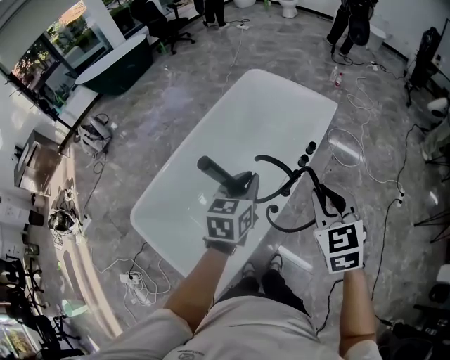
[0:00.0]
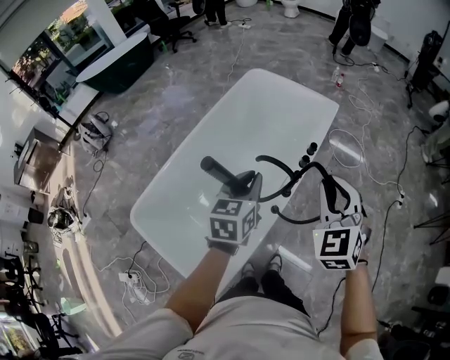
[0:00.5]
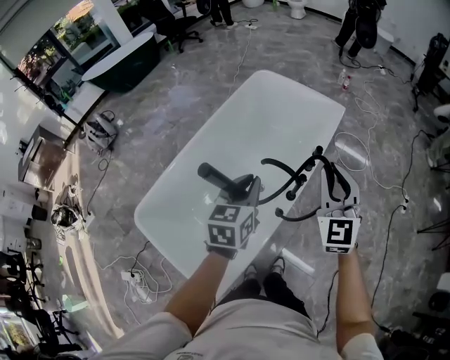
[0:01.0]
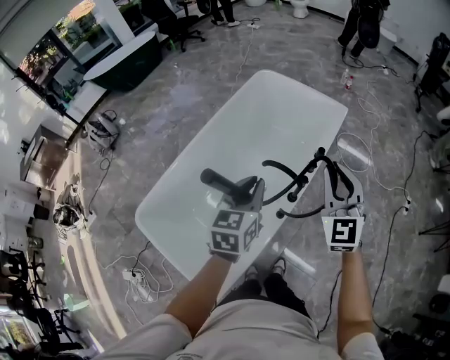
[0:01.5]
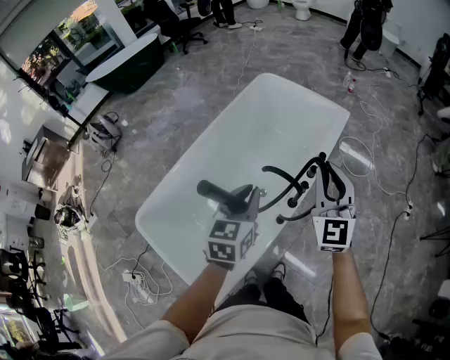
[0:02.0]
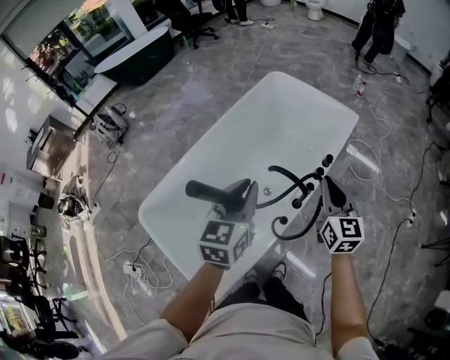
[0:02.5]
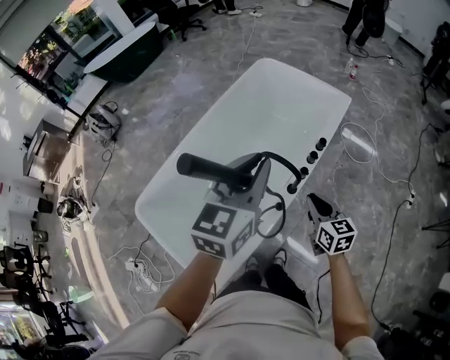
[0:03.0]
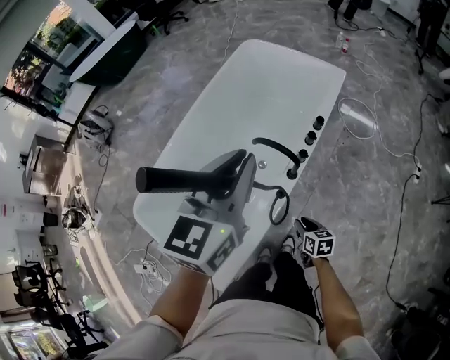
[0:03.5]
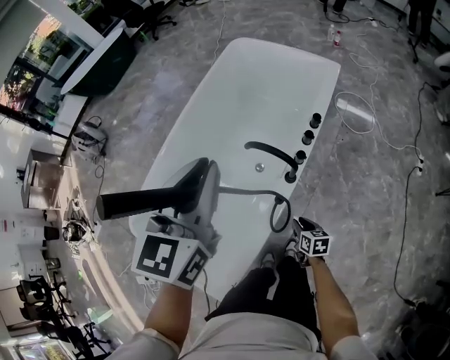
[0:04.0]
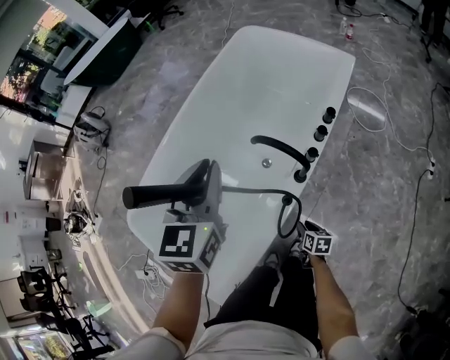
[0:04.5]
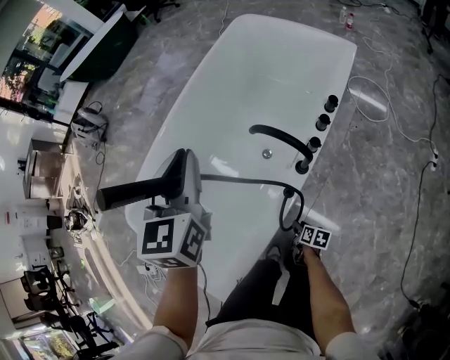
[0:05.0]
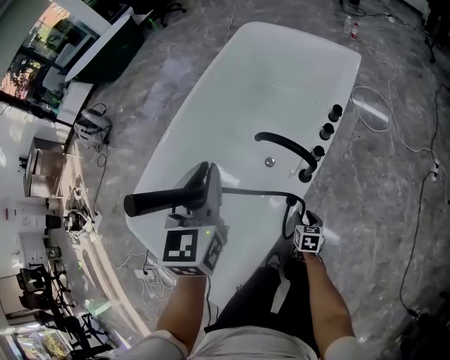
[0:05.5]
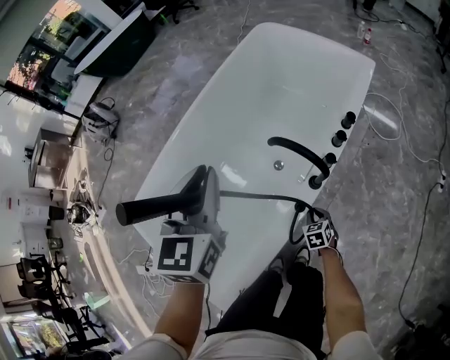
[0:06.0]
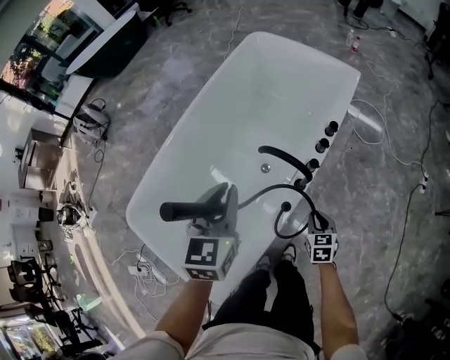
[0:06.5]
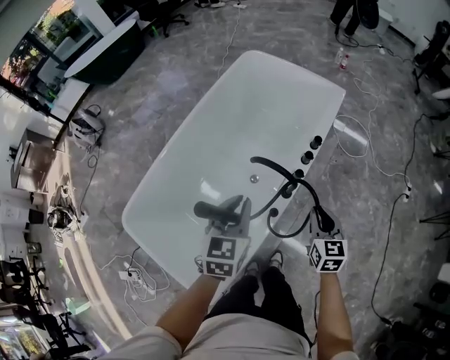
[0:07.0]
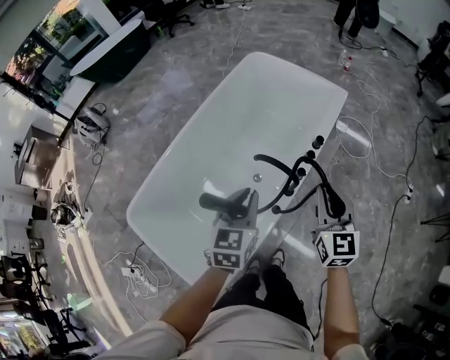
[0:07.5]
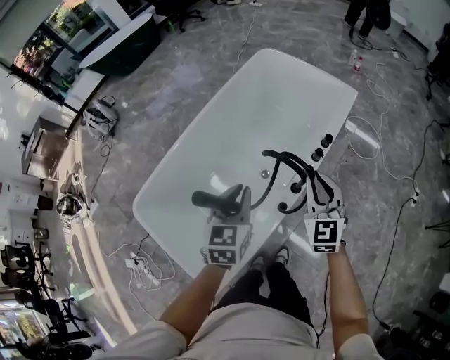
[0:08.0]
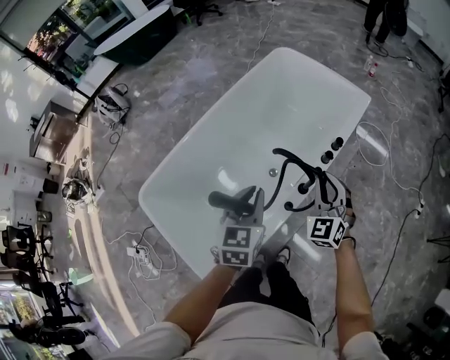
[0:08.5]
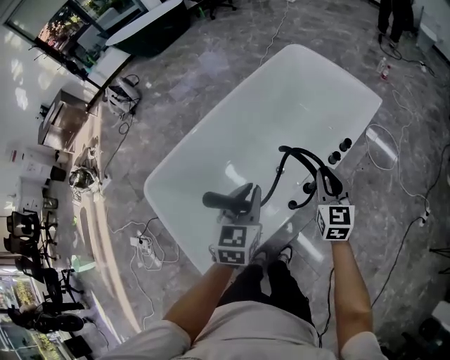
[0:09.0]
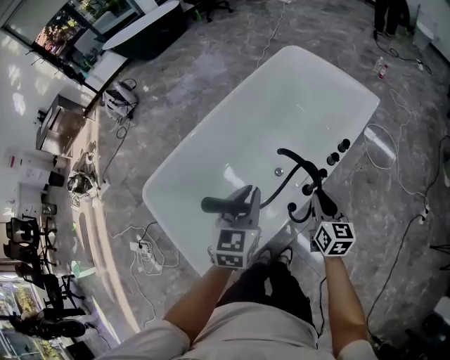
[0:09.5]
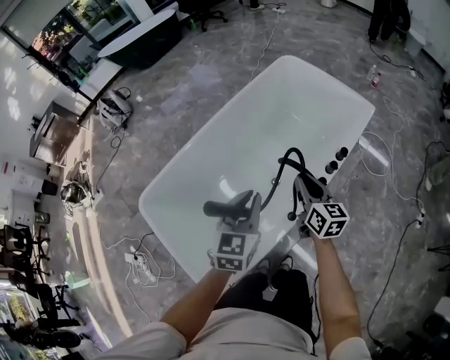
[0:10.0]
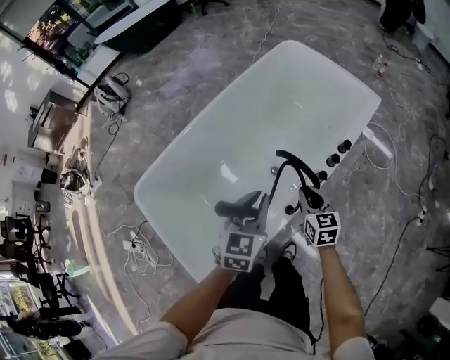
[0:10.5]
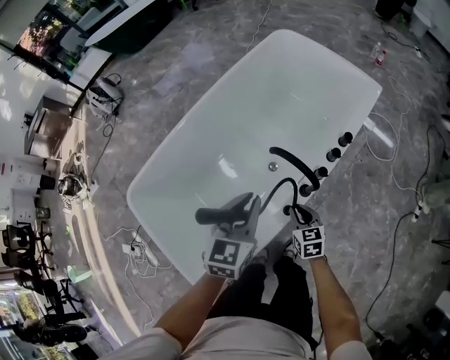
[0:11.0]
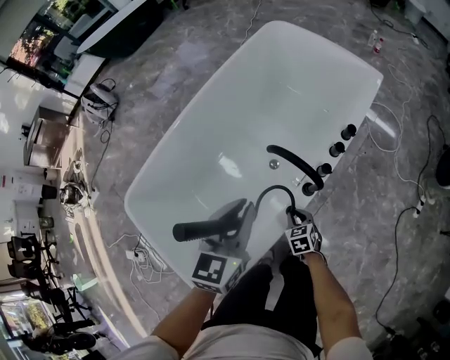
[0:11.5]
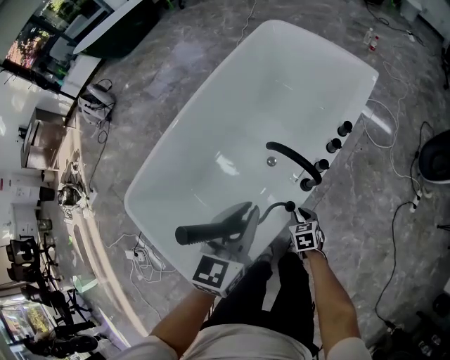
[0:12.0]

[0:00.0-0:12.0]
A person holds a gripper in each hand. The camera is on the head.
0.0 to 2.0 s: The right gripper is displaced forward by some 10 cm, and points its fingers roughly 30 degrees further upward.
2.0 to 4.0 s: The right gripper moves downward, some 50 cm, and tilts its fingers about 50 degrees downward; the left gripper heads upward, covering approximately 5 cm.
4.0 to 6.0 s: The left gripper goes approximately 15 cm downward and to the left, while the right gripper heads downward and forward, covering roughly 15 cm, and changes its angle by some 40 degrees.
6.0 to 8.0 s: The right gripper goes some 50 cm upward, and points its fingers roughly 40 degrees further upward; the left gripper travels to the right by about 5 cm.
8.0 to 10.0 s: The right gripper is displaced downward and to the left by about 10 cm, and swivels roughly 40 degrees.
10.0 to 12.0 s: The left gripper moves about 5 cm, while the right gripper moves downward, about 30 cm, and angles its fingers downward, by approximately 40 degrees.

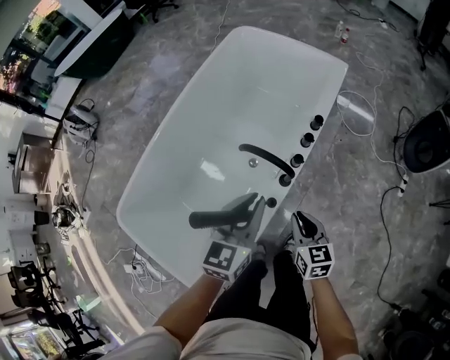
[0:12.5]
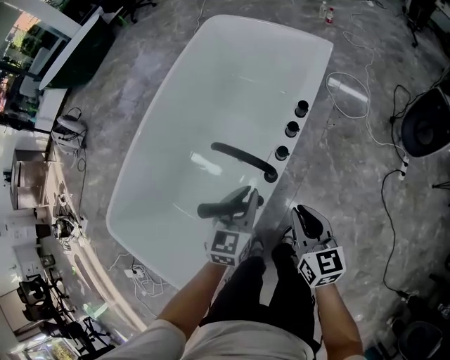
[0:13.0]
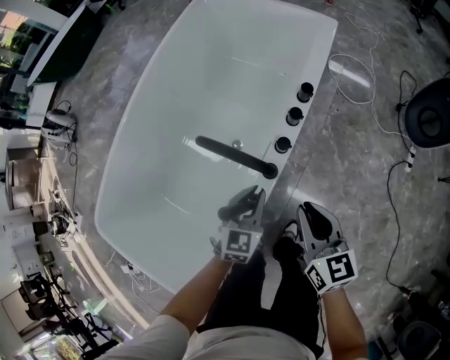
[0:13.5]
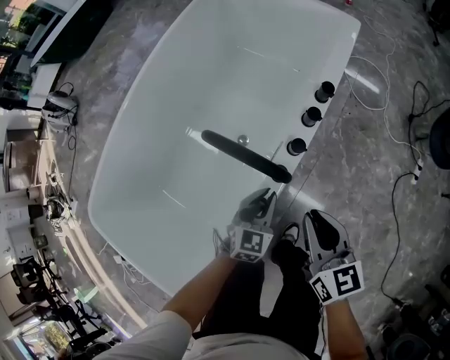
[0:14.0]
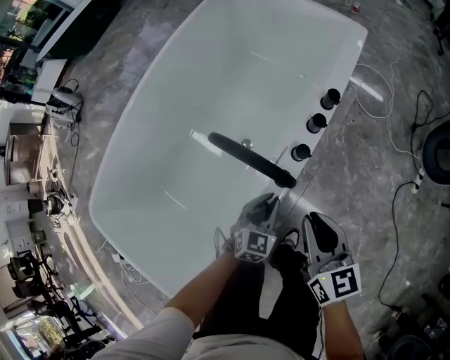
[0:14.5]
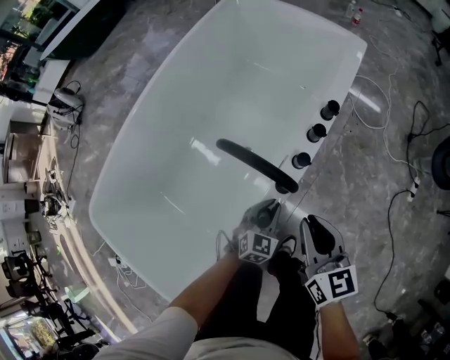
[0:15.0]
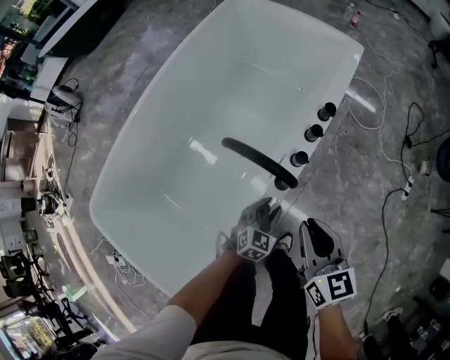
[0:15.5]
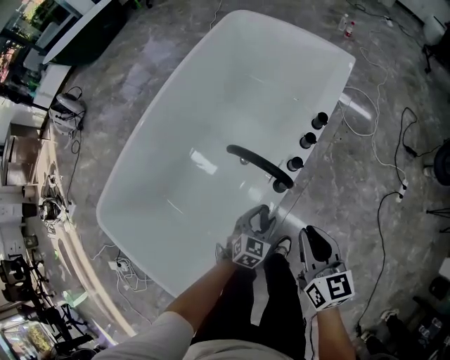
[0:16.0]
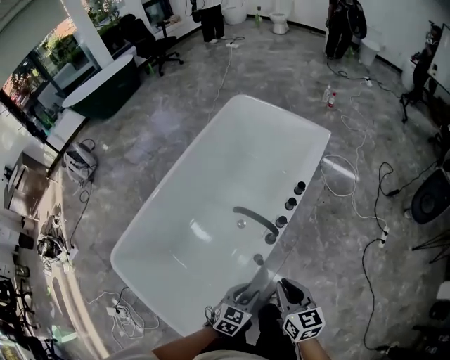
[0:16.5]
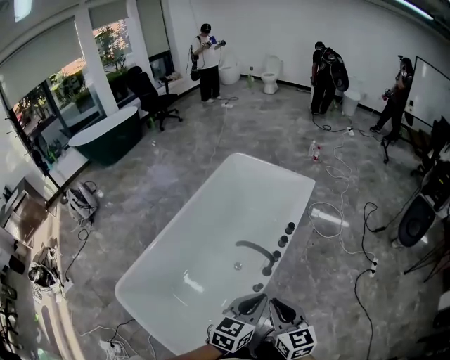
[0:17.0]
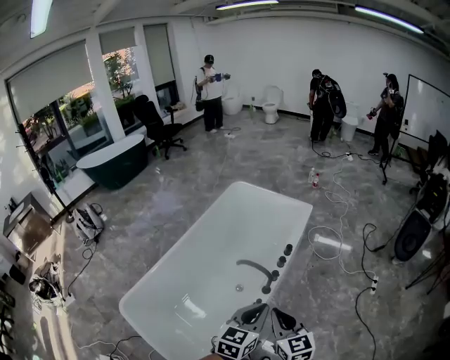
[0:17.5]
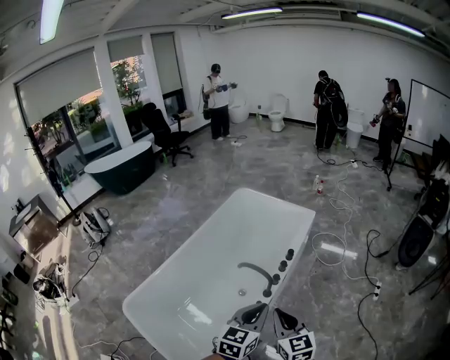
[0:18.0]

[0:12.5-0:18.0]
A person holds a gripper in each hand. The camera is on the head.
12.5 to 14.5 s: The left gripper heads downward, covering roughly 35 cm, and changes its angle by approximately 20 degrees. Meanwhile the right gripper moves forward, some 5 cm.
14.5 to 16.0 s: The left gripper changes place by some 5 cm, and opens, while the right gripper moves upward, about 5 cm.
16.0 to 18.0 s: The left gripper goes some 40 cm upward, rotates roughly 30 degrees, and closes up. The right gripper goes approximately 25 cm upward and backward, and rotates about 20 degrees.

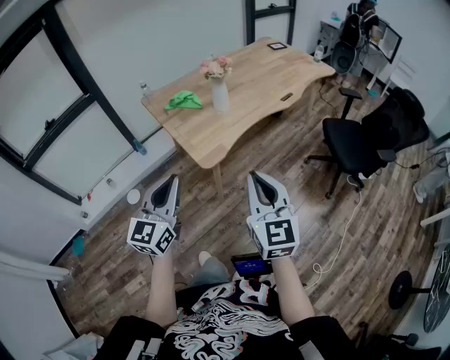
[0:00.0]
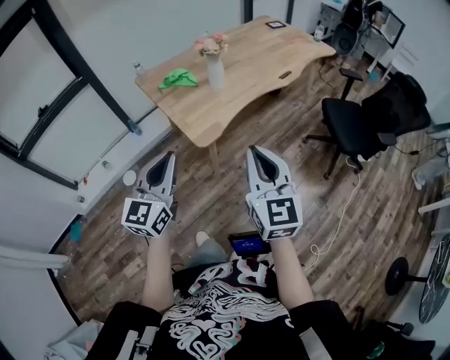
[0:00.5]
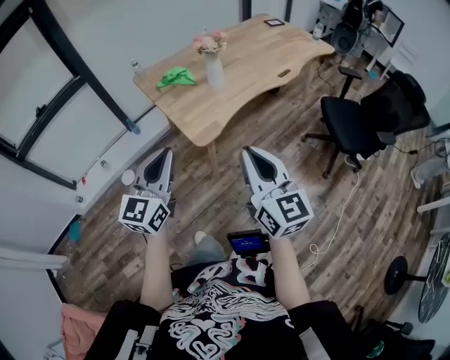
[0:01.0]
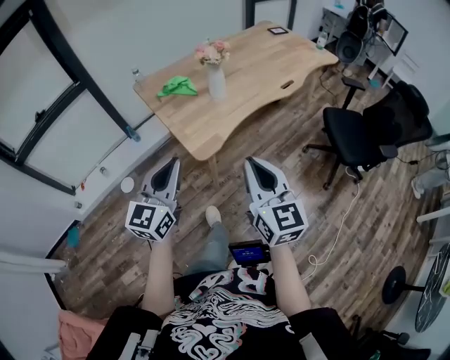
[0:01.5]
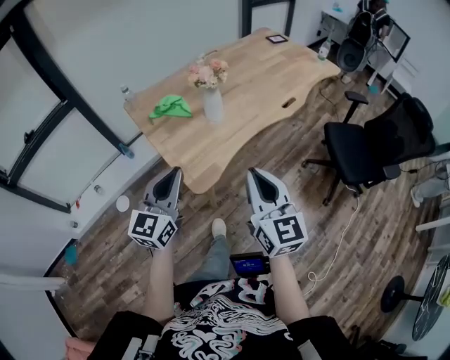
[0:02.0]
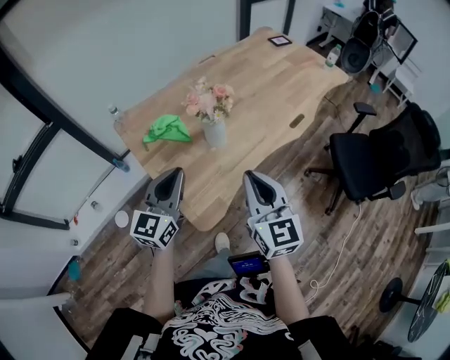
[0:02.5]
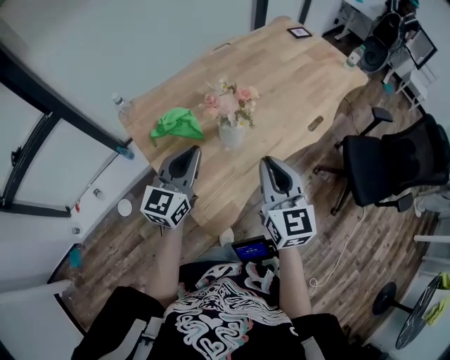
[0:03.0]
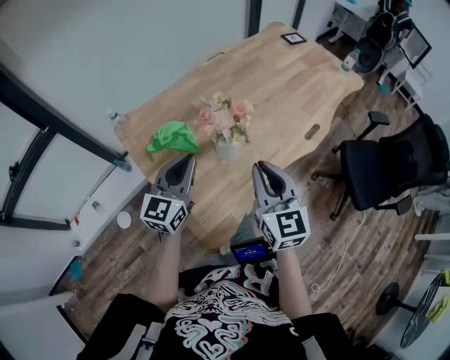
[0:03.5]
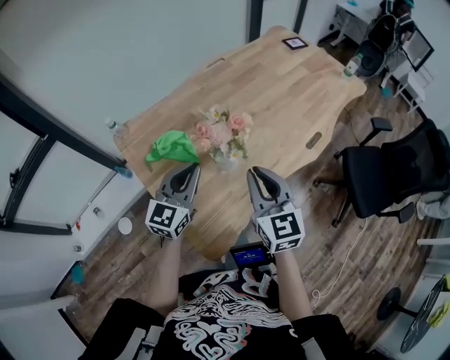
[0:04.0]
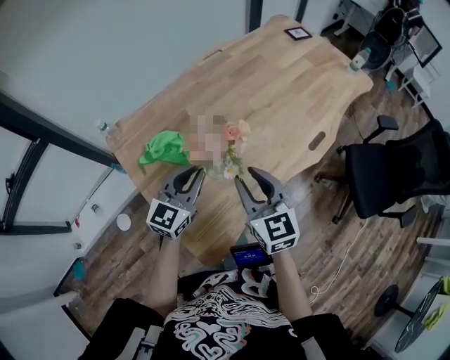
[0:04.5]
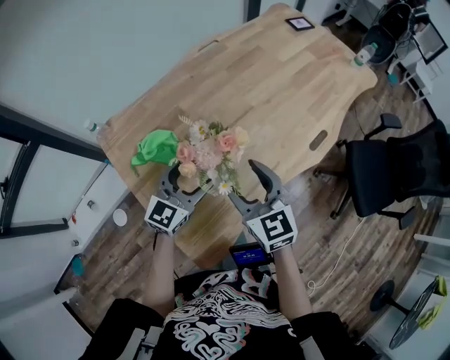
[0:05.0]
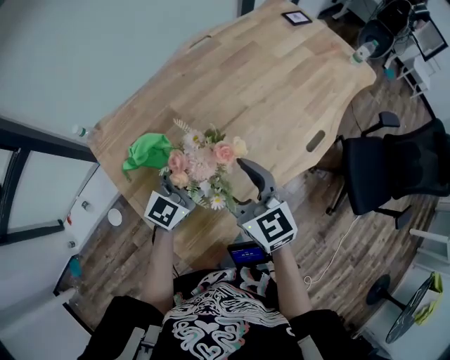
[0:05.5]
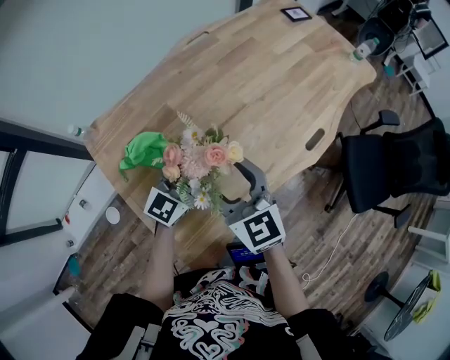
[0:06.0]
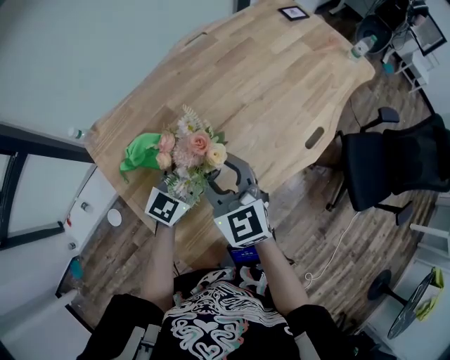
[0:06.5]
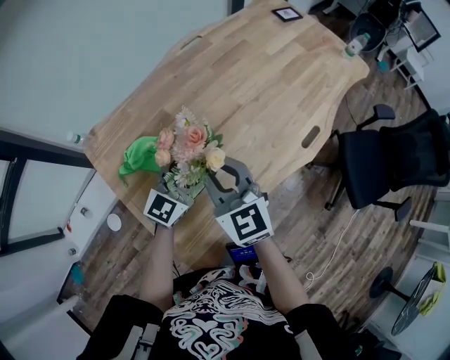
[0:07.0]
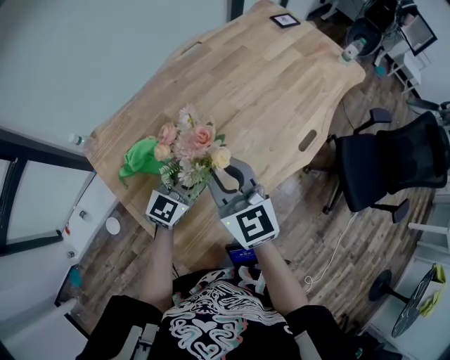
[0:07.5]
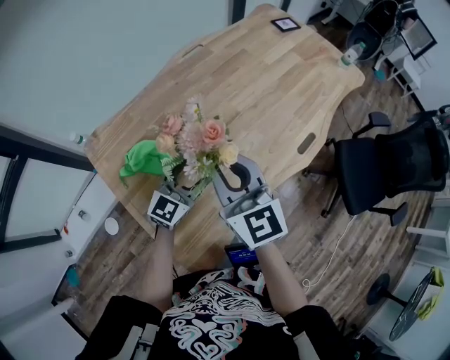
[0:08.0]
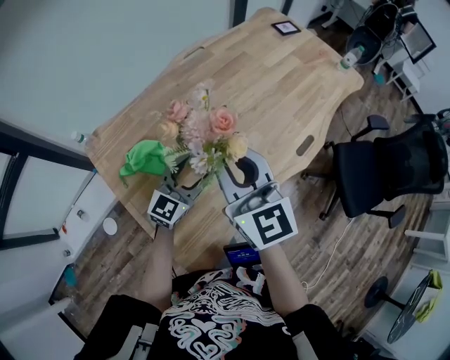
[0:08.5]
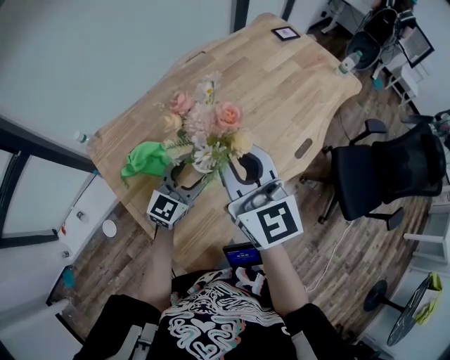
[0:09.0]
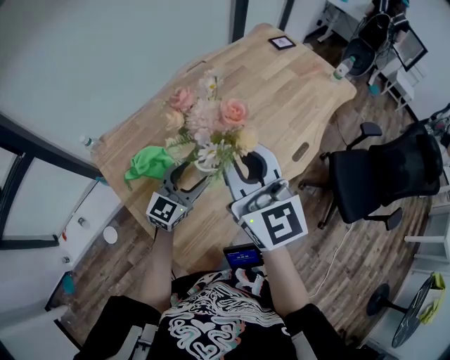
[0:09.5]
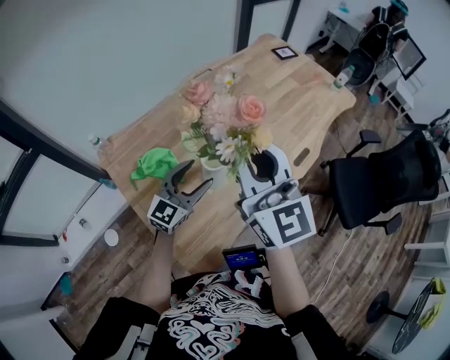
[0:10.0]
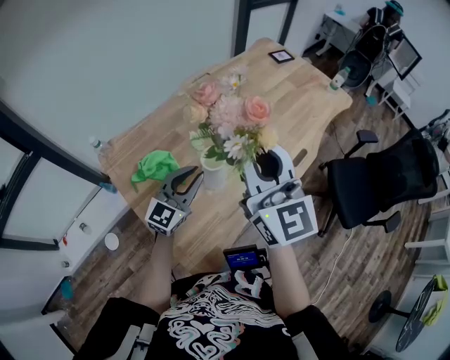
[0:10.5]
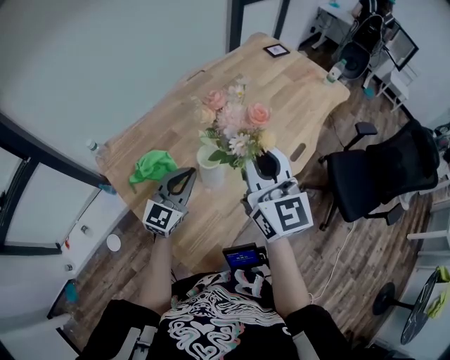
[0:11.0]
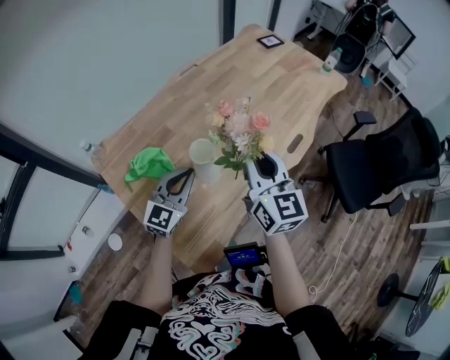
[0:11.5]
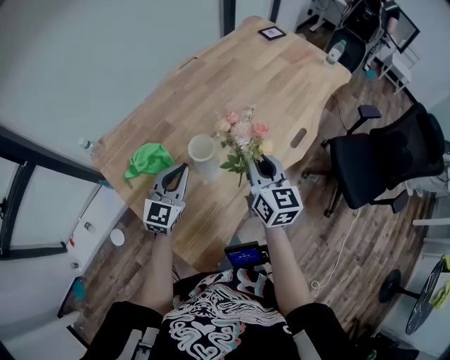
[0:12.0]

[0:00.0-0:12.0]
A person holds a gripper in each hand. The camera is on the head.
0.0 to 2.0 s: The grippers both shift forward by about 20 cm.
2.0 to 4.0 s: The grippers both shift forward by roughly 35 cm.
4.0 to 6.0 s: The right gripper is displaced forward and to the left by approximately 10 cm, and opens its fingers; the left gripper shifts some 15 cm forward, to the right and downward, and opens.
6.0 to 8.0 s: The right gripper travels upward by about 5 cm, and closes its fingers.
8.0 to 10.0 s: The left gripper ends up some 5 cm from where it was; the right gripper travels upward by about 15 cm.
10.0 to 12.0 s: The left gripper closes; the right gripper goes roughly 20 cm downward, and changes its angle by roughly 30 degrees.
